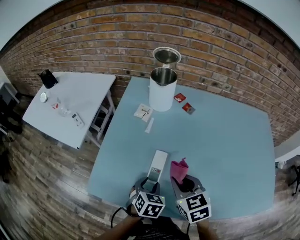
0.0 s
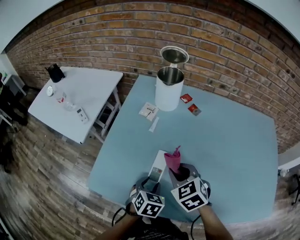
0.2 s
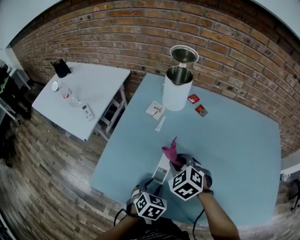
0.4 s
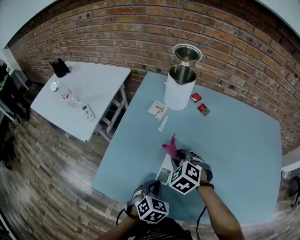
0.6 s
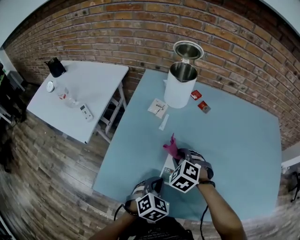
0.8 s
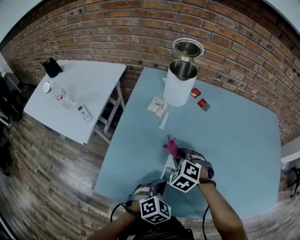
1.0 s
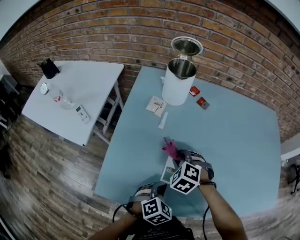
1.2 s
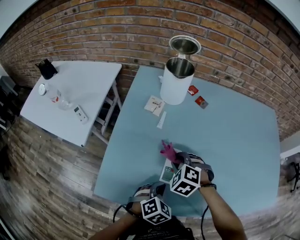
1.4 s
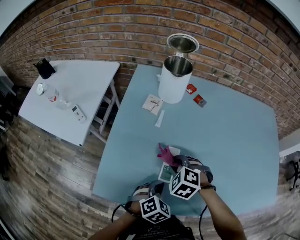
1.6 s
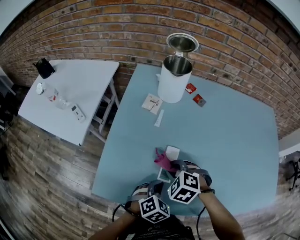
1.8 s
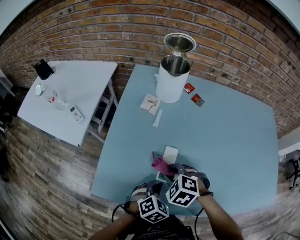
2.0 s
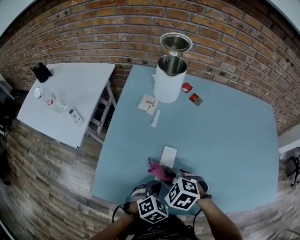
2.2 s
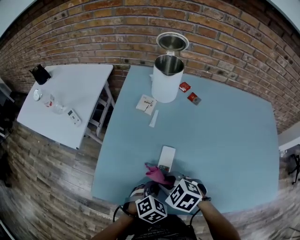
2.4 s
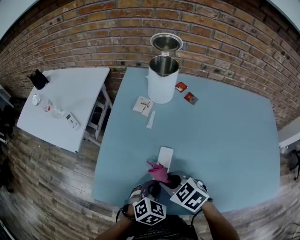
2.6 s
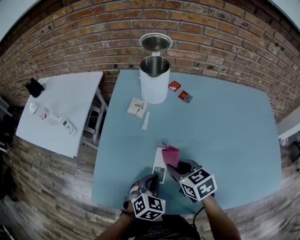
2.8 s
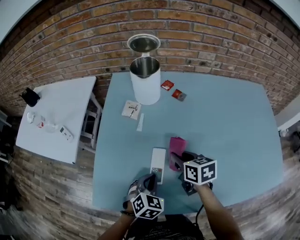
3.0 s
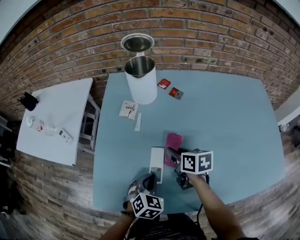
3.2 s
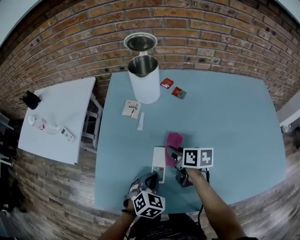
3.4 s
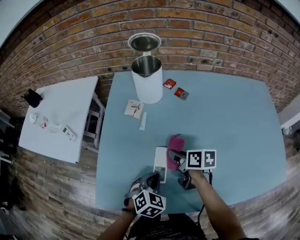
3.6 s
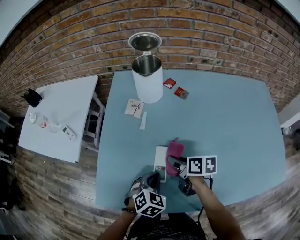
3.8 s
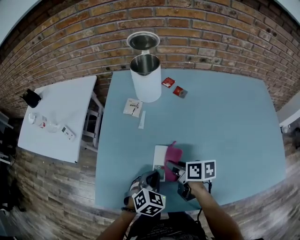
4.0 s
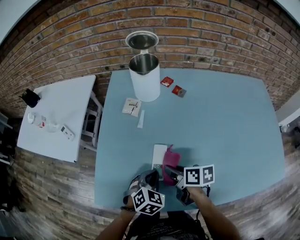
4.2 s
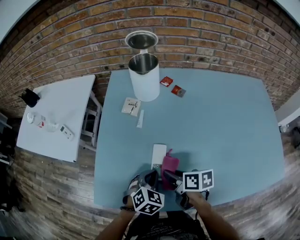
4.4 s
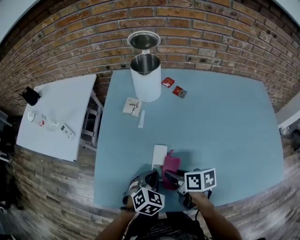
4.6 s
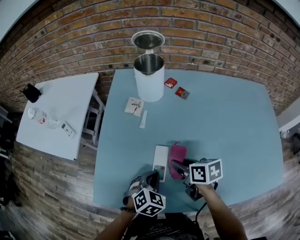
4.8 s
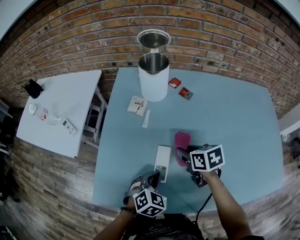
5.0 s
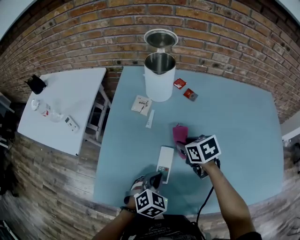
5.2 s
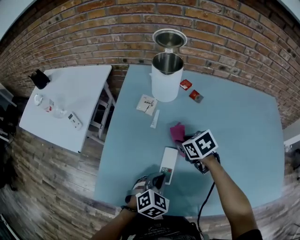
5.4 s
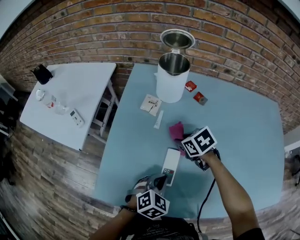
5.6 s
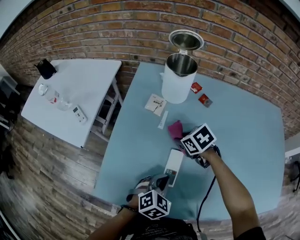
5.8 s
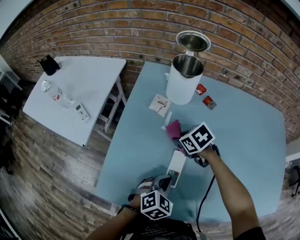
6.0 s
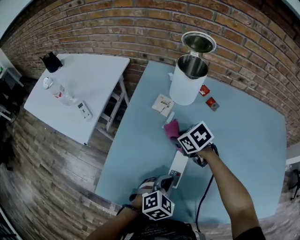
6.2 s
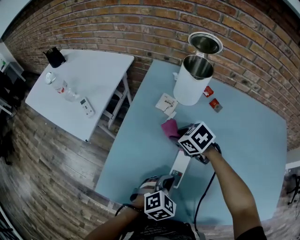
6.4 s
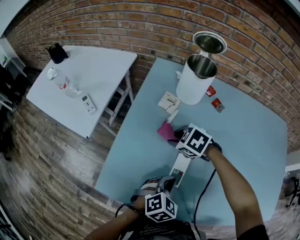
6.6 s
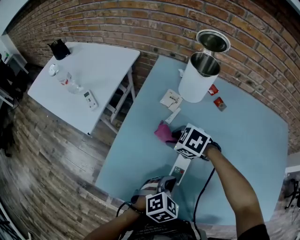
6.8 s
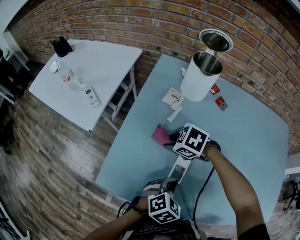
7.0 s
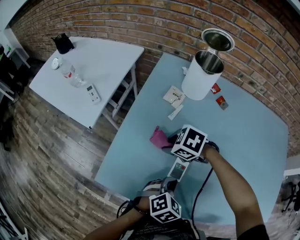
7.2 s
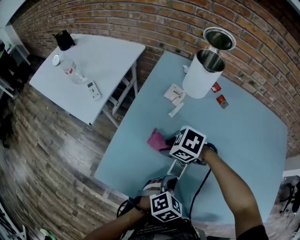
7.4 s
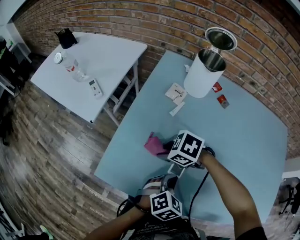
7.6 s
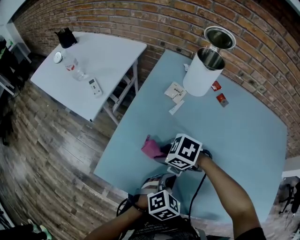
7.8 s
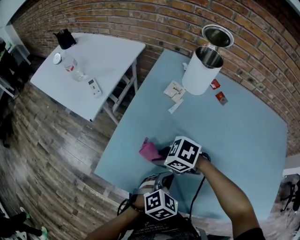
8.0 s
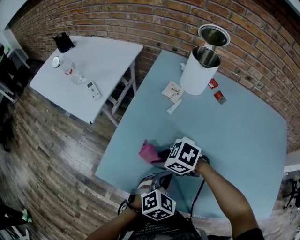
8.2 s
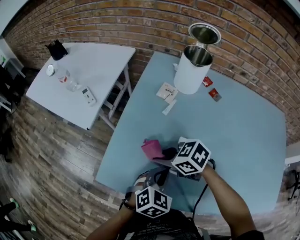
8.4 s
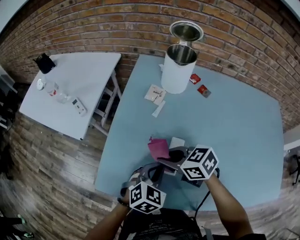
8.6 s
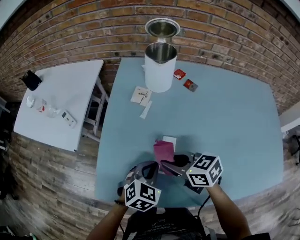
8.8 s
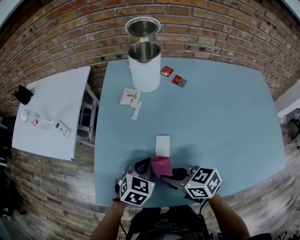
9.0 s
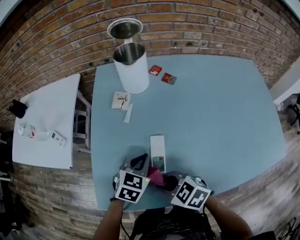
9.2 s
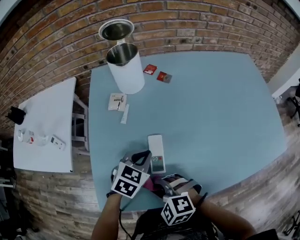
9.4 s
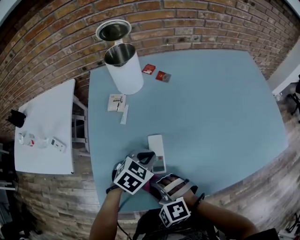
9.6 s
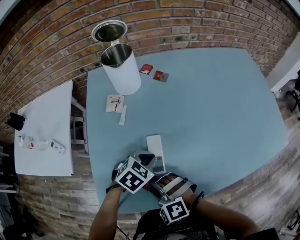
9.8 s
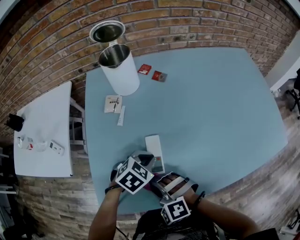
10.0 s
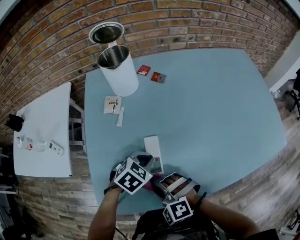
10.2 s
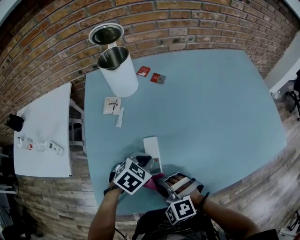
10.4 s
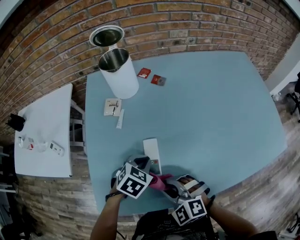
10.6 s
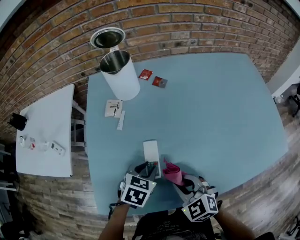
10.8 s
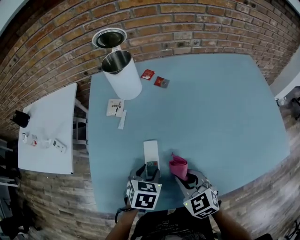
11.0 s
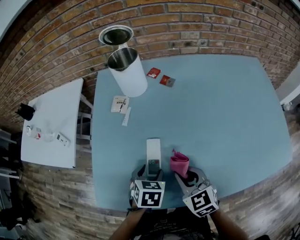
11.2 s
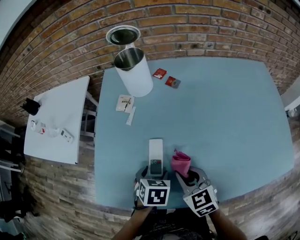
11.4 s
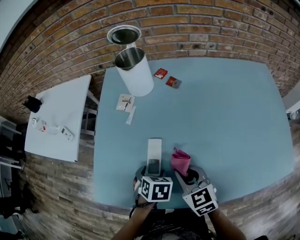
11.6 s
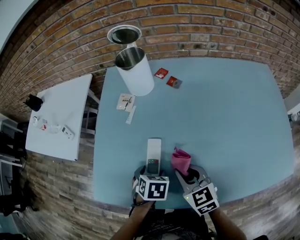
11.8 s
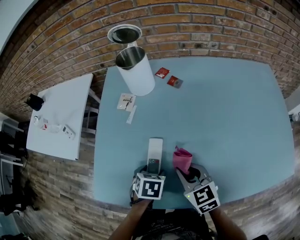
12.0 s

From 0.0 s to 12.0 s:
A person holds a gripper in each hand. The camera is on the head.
From 0.0 s to 1.6 s: The right gripper shifts about 15 cm downward, to the left and forward, and rotates around the line of its fingers by roughly 40 degrees, counterclockwise from behind, while the left gripper swivels some 30 degrees, and closes.
From 1.6 s to 3.0 s: The left gripper changes place by some 5 cm, while the right gripper goes approximately 10 cm to the right, and rotates around the line of its fingers by approximately 70 degrees, clockwise from behind.
From 3.0 s to 4.4 s: The right gripper moves backward and to the left, some 10 cm, and turns by about 30 degrees.
From 4.4 s to 6.0 s: The right gripper shifts approximately 20 cm forward, and twists about 50 degrees counterclockwise, seen from behind.
From 6.0 s to 7.6 s: The right gripper moves some 15 cm, and changes its angle by approximately 40 degrees.
From 7.6 s to 9.0 s: The left gripper moves about 10 cm. The right gripper moves roughly 10 cm, and changes its angle by approximately 50 degrees.
From 9.0 s to 10.4 s: The right gripper shifts by roughly 5 cm, and rolls counterclockwise, seen from behind, by approximately 60 degrees. Meanwhile the left gripper moves approximately 5 cm, and rotates roughly 30 degrees.
From 10.4 s to 12.0 s: The right gripper changes place by roughly 15 cm, and rolls clockwise, seen from behind, by about 50 degrees. The left gripper moves approximately 5 cm, rolls counterclockwise, seen from behind, by approximately 40 degrees, and opens its fingers.

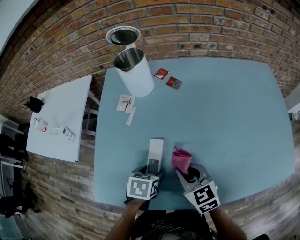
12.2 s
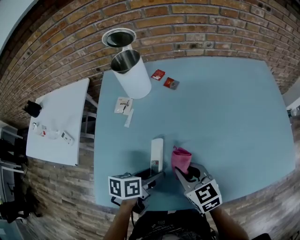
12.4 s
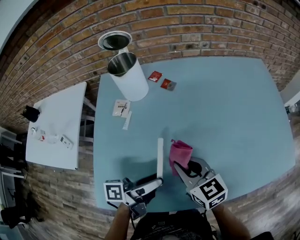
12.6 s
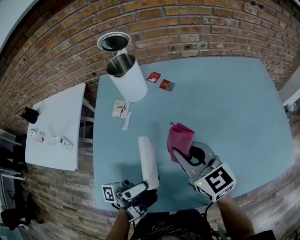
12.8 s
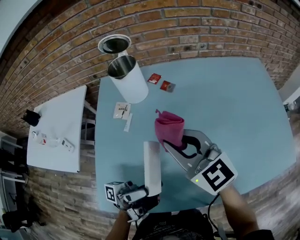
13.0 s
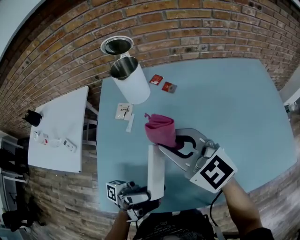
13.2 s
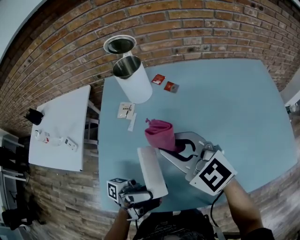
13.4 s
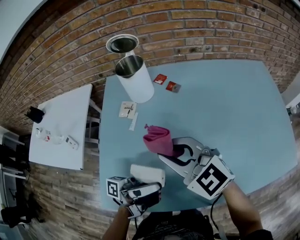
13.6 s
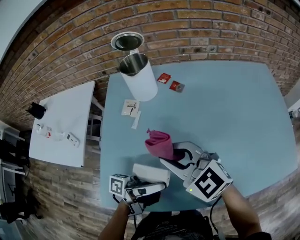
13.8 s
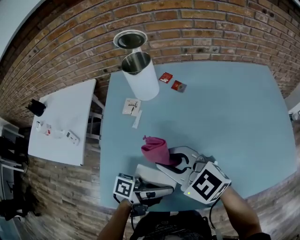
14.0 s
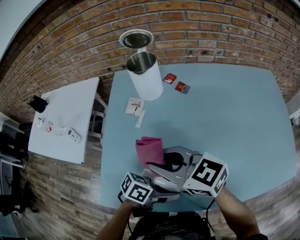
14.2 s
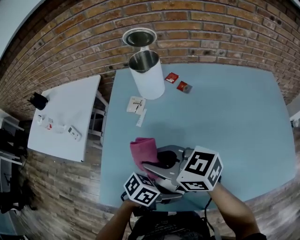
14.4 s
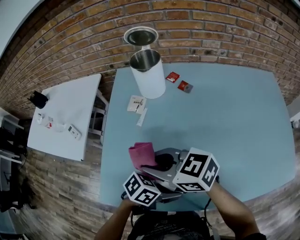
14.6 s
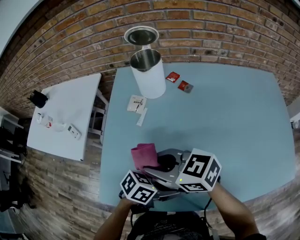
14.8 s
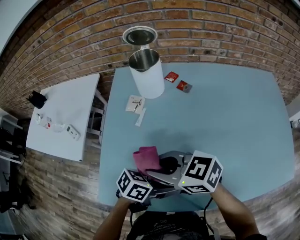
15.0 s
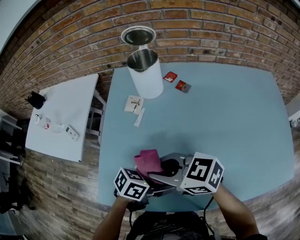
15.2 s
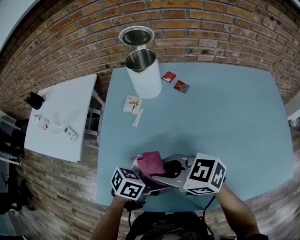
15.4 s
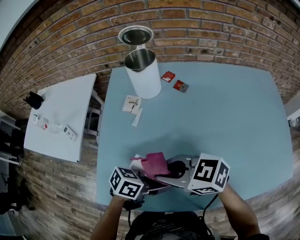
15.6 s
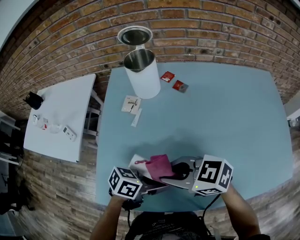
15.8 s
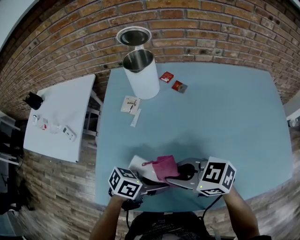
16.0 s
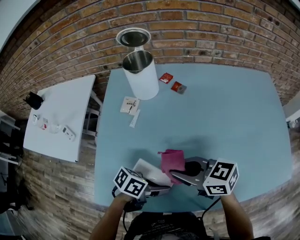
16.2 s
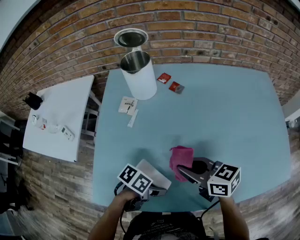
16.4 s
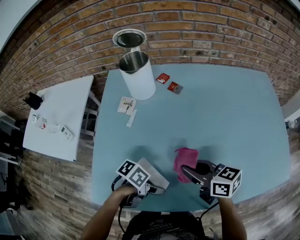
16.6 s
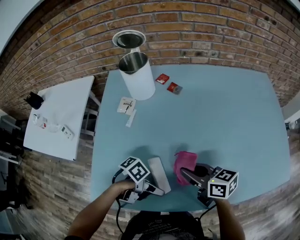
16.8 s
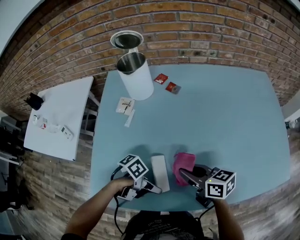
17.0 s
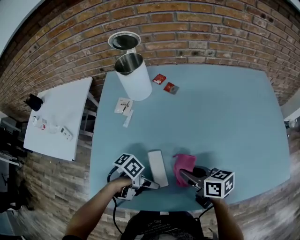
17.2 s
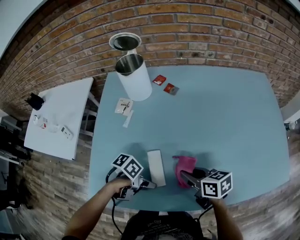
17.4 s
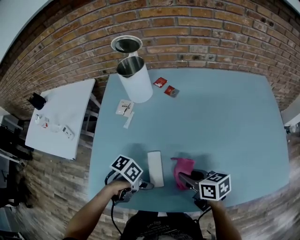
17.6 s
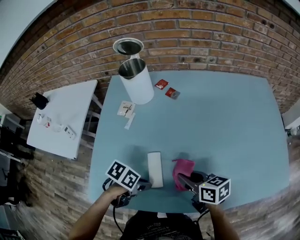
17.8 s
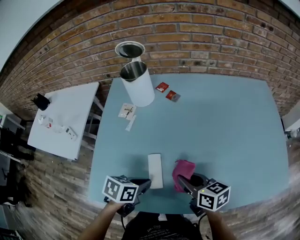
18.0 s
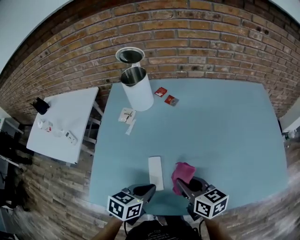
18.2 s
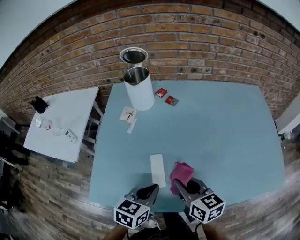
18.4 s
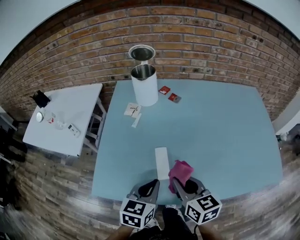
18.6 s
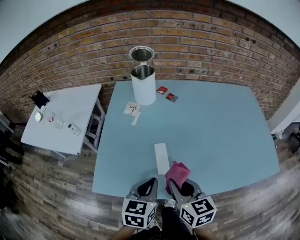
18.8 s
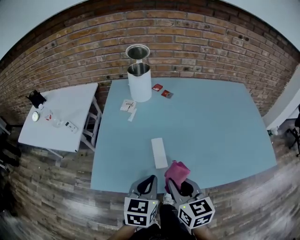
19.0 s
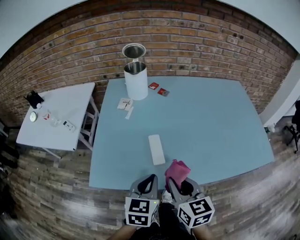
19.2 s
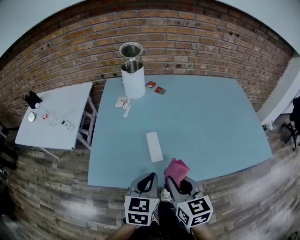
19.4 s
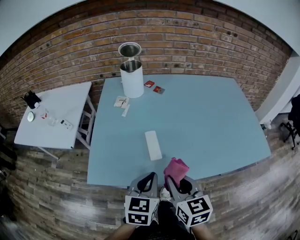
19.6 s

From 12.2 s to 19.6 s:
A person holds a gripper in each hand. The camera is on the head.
From 12.2 s to 13.6 s: The right gripper heads upward and to the left, covering approximately 20 cm, and turns by approximately 30 degrees, while the left gripper shifts approximately 20 cm upward, tips its fingers upward by about 90 degrees, and closes.
From 13.6 s to 15.2 s: The right gripper shifts by some 10 cm, and turns by about 40 degrees. The left gripper shifts roughly 10 cm downward, and tilts its fingers some 50 degrees downward.
From 15.2 s to 16.6 s: The right gripper shifts by about 15 cm, and swivels approximately 40 degrees. Meanwhile the left gripper travels downward by some 5 cm, and changes its angle by about 30 degrees.
From 16.6 s to 18.2 s: The left gripper travels upward by approximately 5 cm, and rotates roughly 50 degrees.
From 18.2 s to 19.6 s: The right gripper moves backward, about 15 cm, and changes its angle by some 30 degrees, while the left gripper moves backward and upward, about 10 cm, and rotates roughly 30 degrees.

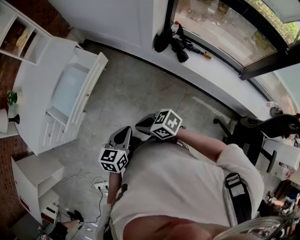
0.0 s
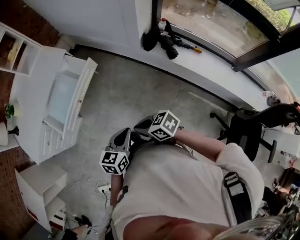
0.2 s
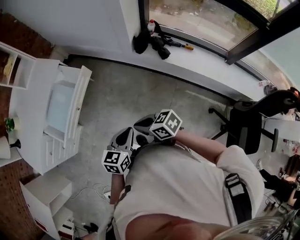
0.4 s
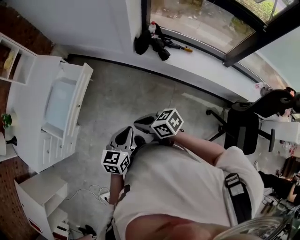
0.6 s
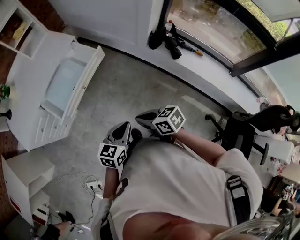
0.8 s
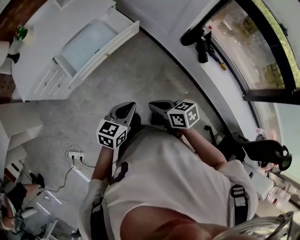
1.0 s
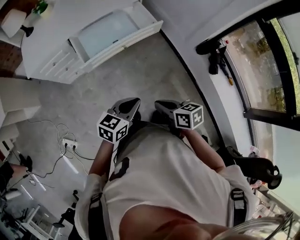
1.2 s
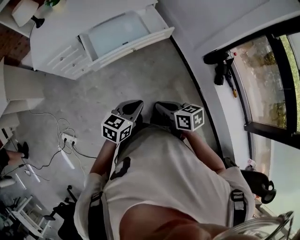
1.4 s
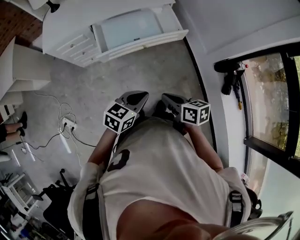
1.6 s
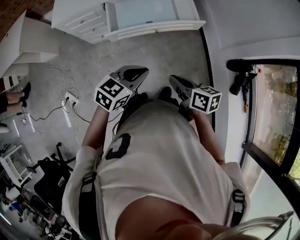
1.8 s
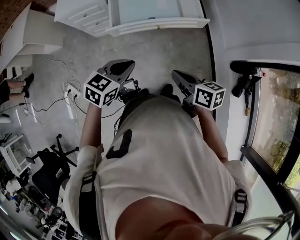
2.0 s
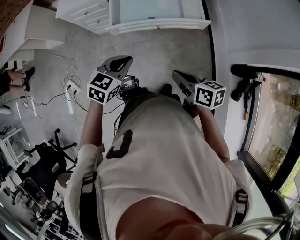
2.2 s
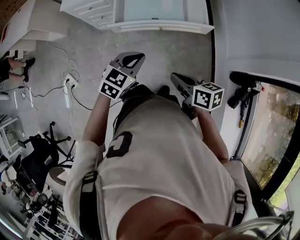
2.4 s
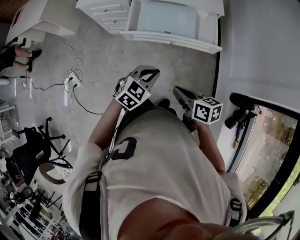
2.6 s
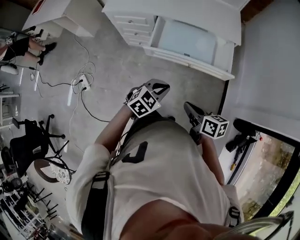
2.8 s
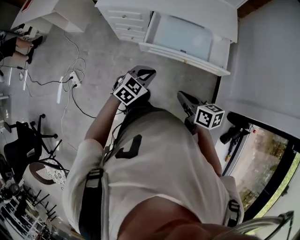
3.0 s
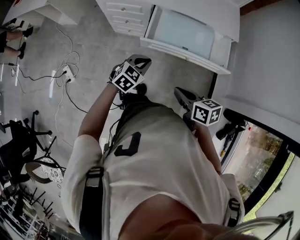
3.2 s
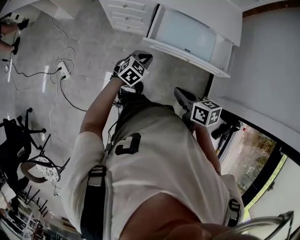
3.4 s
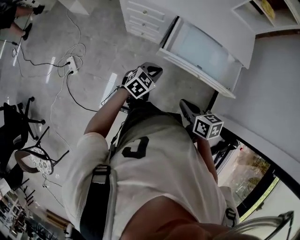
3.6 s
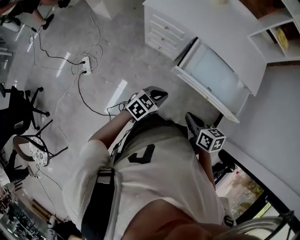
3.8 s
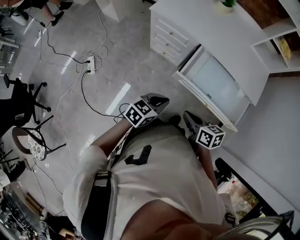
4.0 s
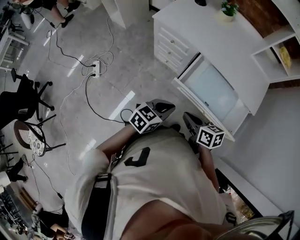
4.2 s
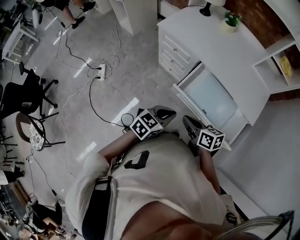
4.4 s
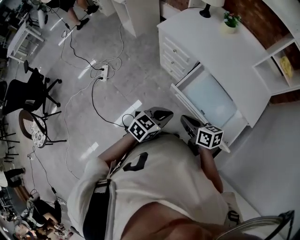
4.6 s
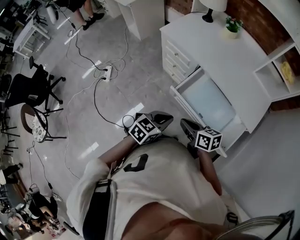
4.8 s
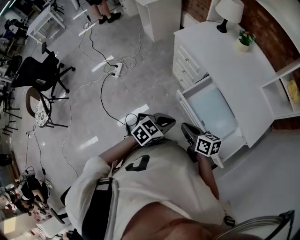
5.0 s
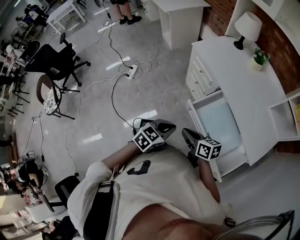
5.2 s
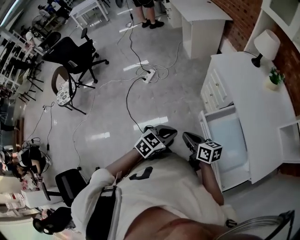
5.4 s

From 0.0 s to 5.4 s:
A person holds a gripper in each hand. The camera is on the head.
From 0.0 s to 1.4 s: The left gripper travels to the left by about 15 cm. The right gripper travels to the left by some 10 cm.
From 1.4 s to 2.8 s: The right gripper shifts by approximately 10 cm, and turns by roughly 20 degrees; the left gripper changes place by approximately 15 cm, and swivels approximately 30 degrees.
From 2.8 s to 4.0 s: Both grippers move to the left and forward, some 20 cm. The left gripper swivels approximately 40 degrees, while the right gripper swivels approximately 20 degrees.
From 4.0 s to 5.4 s: The right gripper turns by about 50 degrees; the left gripper shifts by approximately 10 cm, and changes its angle by about 40 degrees.
